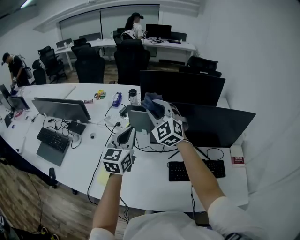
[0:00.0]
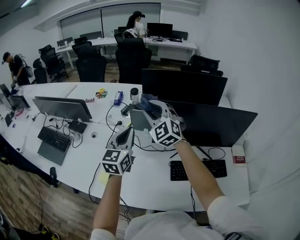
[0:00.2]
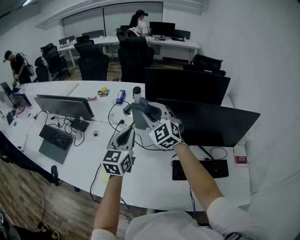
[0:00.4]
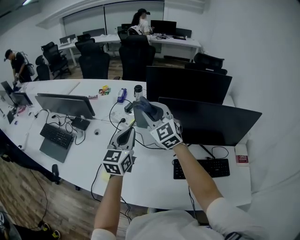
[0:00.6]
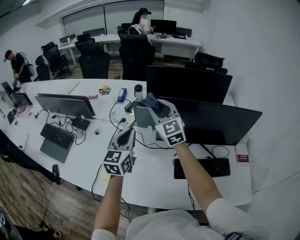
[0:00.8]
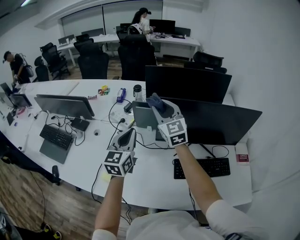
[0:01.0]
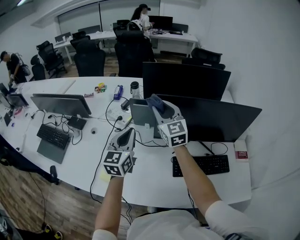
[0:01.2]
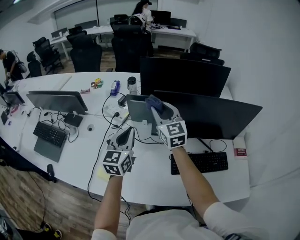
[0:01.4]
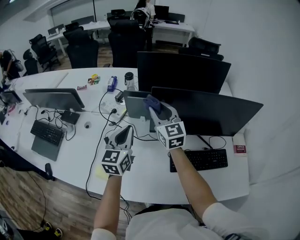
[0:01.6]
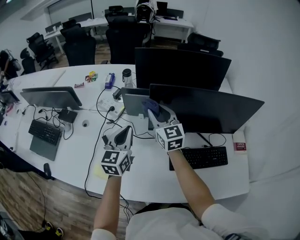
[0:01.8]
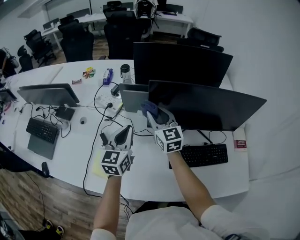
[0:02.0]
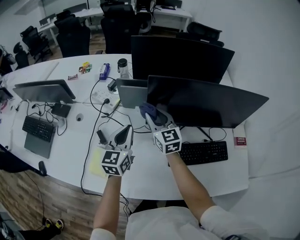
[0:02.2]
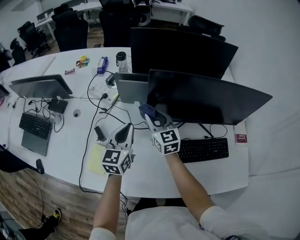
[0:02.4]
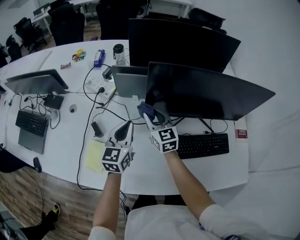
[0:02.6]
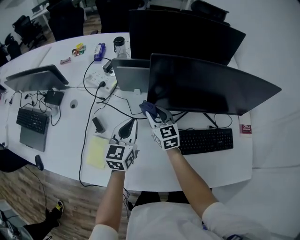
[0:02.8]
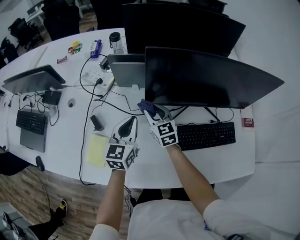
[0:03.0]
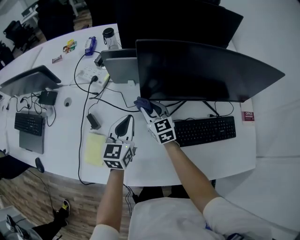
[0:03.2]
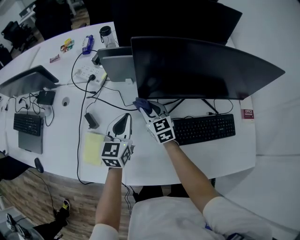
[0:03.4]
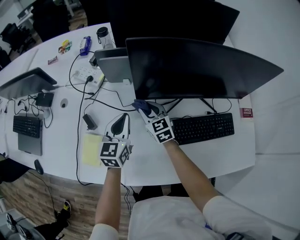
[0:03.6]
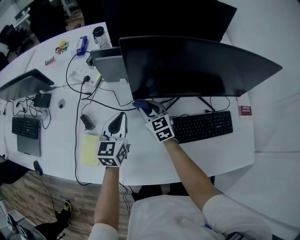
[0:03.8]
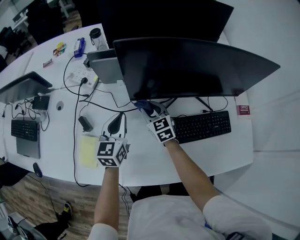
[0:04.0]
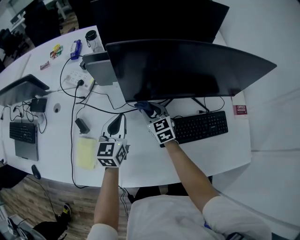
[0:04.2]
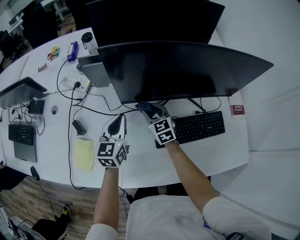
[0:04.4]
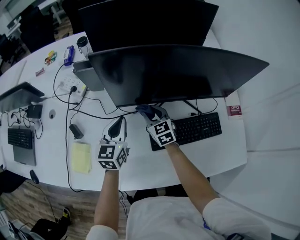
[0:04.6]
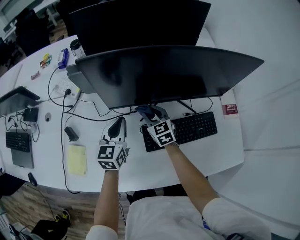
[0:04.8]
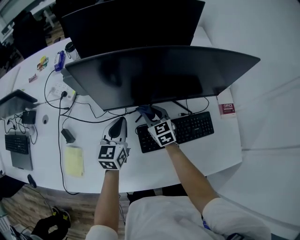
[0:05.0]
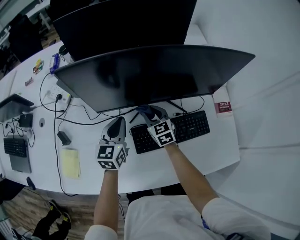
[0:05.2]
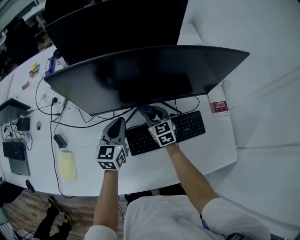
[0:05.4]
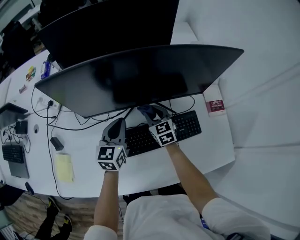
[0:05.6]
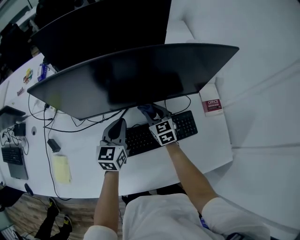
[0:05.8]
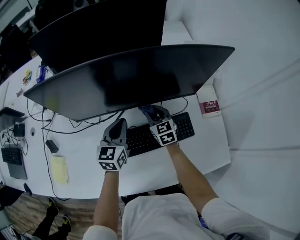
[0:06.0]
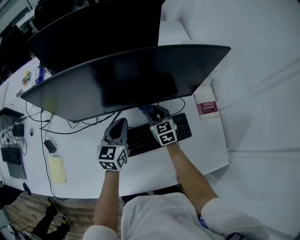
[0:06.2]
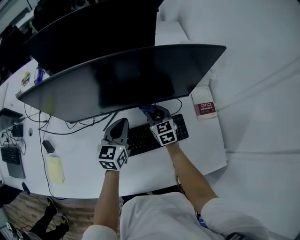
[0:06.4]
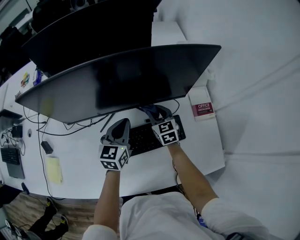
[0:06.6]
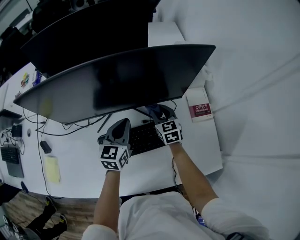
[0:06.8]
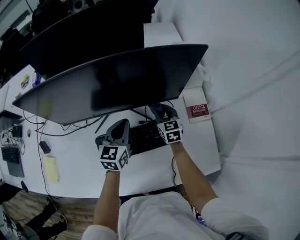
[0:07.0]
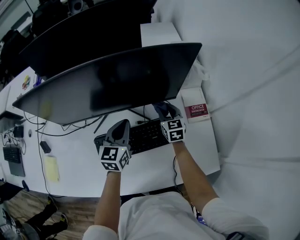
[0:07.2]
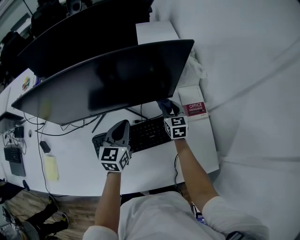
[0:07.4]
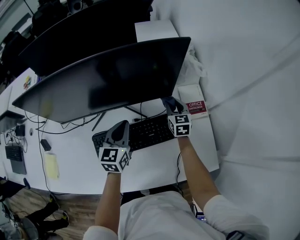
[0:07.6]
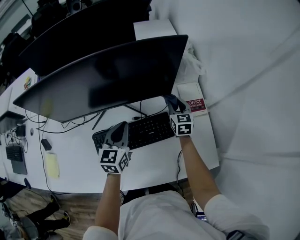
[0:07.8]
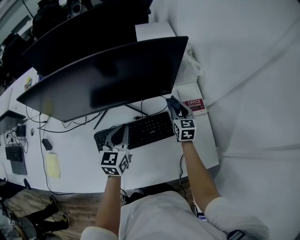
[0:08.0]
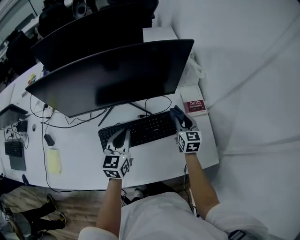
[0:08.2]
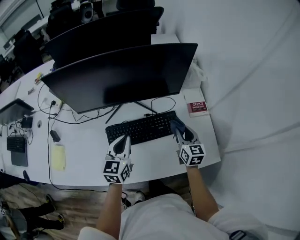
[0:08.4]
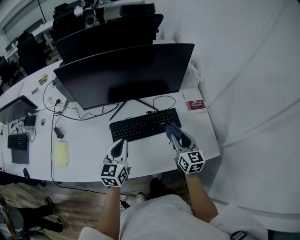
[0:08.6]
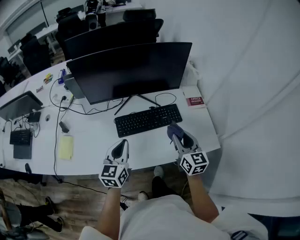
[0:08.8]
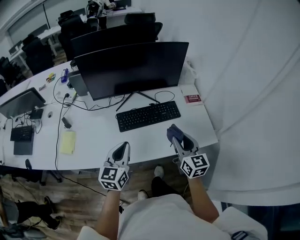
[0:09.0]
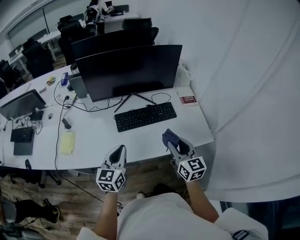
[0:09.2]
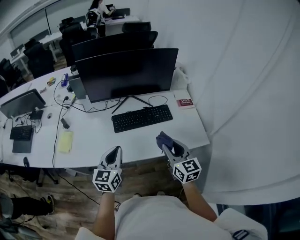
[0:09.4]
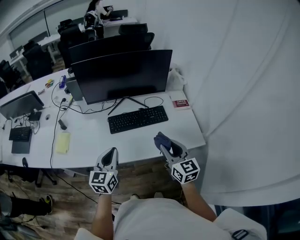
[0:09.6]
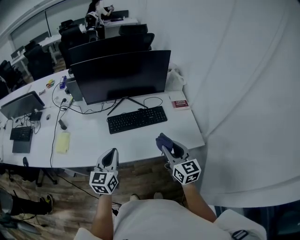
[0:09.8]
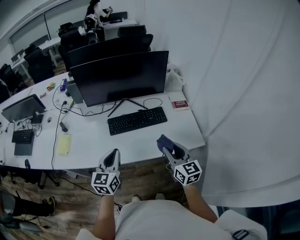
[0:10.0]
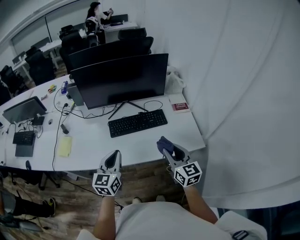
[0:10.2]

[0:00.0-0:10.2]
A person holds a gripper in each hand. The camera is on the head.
0.0 to 1.4 s: Both grippers travel together downward, approximately 5 cm. The right gripper changes its angle by roughly 40 degrees.
1.4 to 3.0 s: The left gripper shifts about 15 cm downward. Meanwhile the right gripper is displaced downward by some 25 cm, and swivels about 20 degrees.
3.0 to 4.4 s: The left gripper travels to the right by roughly 5 cm; the right gripper travels to the right by approximately 10 cm.
4.4 to 5.8 s: Both grippers travel together to the right, some 20 cm.
5.8 to 7.2 s: The grippers both shift to the right by roughly 15 cm.
7.2 to 8.8 s: The right gripper shifts about 35 cm backward and upward. Meanwhile the left gripper moves backward, approximately 25 cm.
8.8 to 10.2 s: Both grippers move backward, some 10 cm.

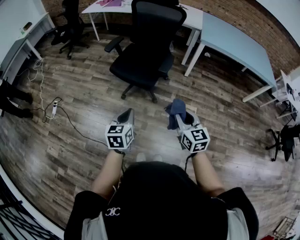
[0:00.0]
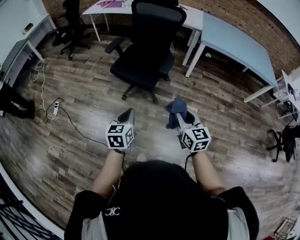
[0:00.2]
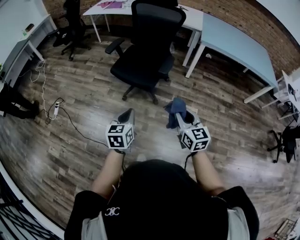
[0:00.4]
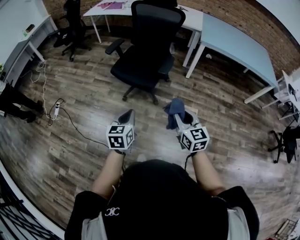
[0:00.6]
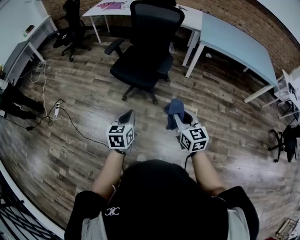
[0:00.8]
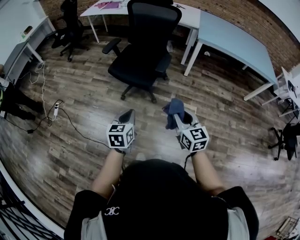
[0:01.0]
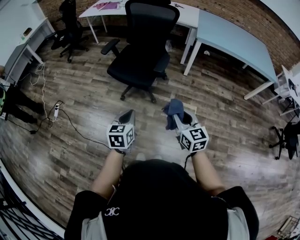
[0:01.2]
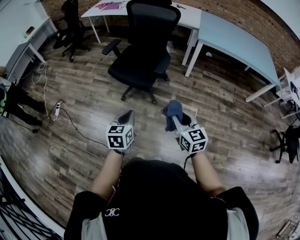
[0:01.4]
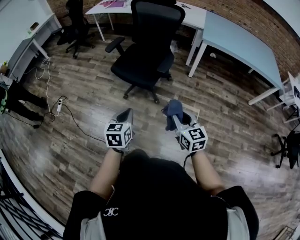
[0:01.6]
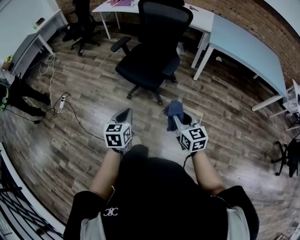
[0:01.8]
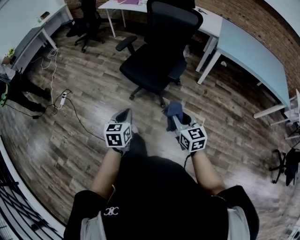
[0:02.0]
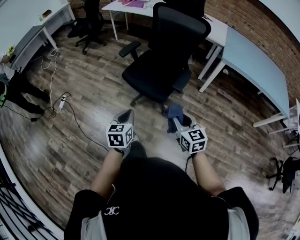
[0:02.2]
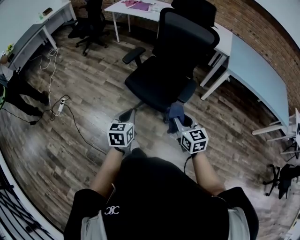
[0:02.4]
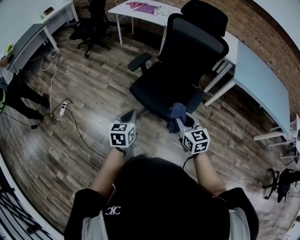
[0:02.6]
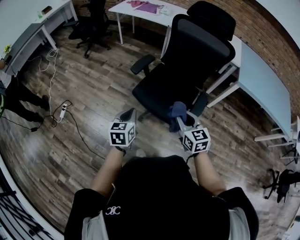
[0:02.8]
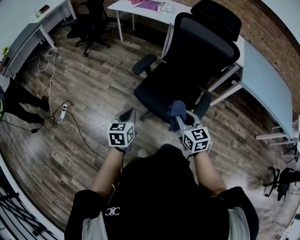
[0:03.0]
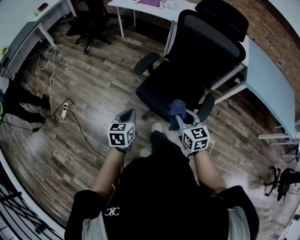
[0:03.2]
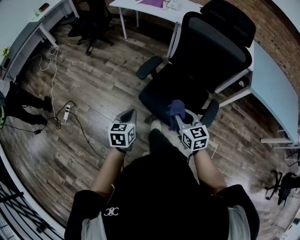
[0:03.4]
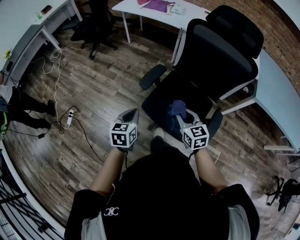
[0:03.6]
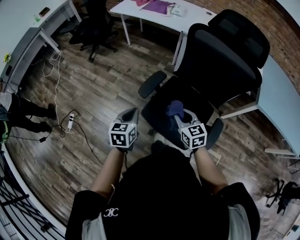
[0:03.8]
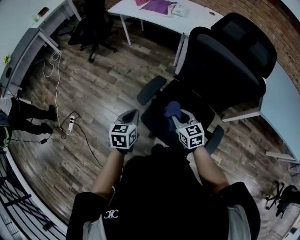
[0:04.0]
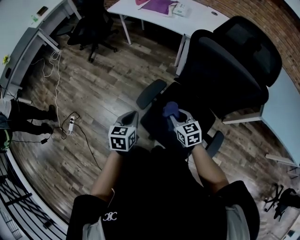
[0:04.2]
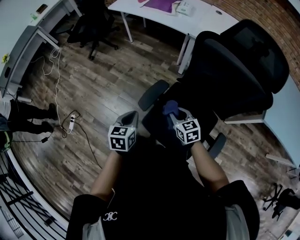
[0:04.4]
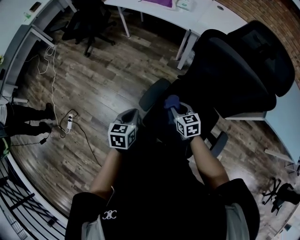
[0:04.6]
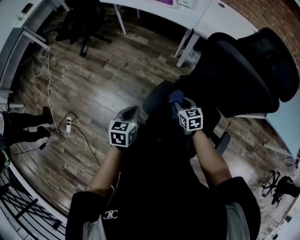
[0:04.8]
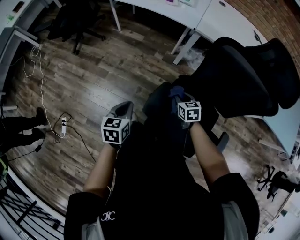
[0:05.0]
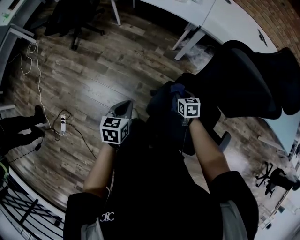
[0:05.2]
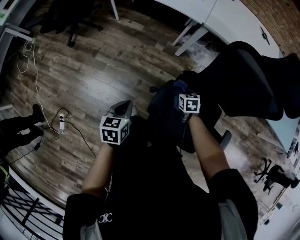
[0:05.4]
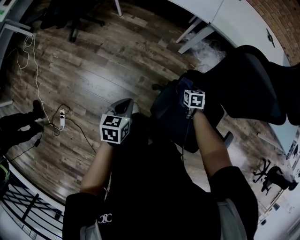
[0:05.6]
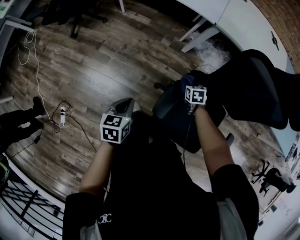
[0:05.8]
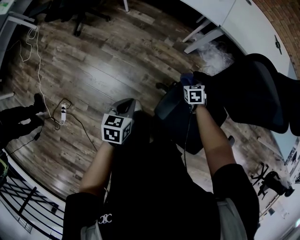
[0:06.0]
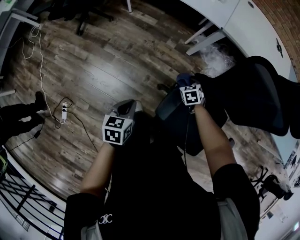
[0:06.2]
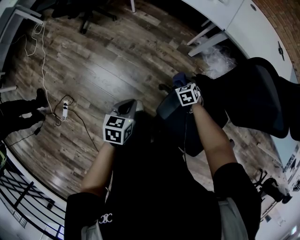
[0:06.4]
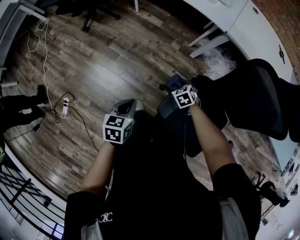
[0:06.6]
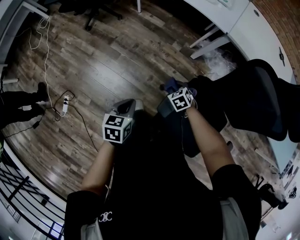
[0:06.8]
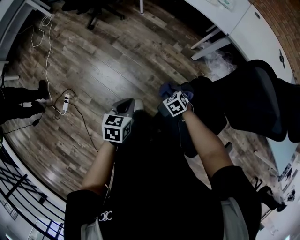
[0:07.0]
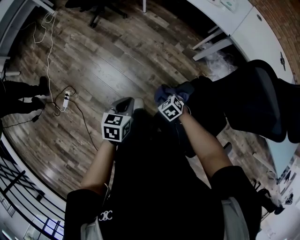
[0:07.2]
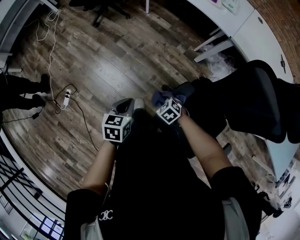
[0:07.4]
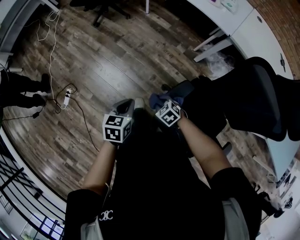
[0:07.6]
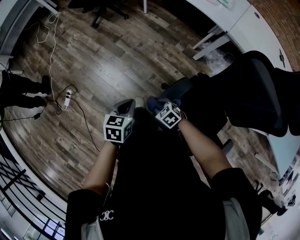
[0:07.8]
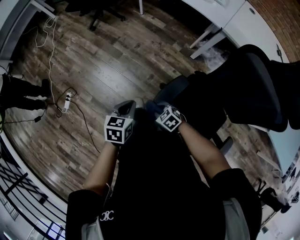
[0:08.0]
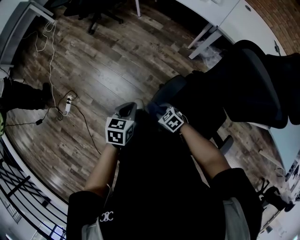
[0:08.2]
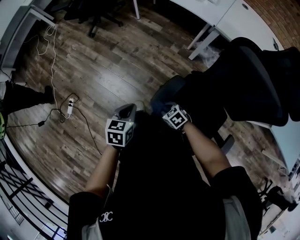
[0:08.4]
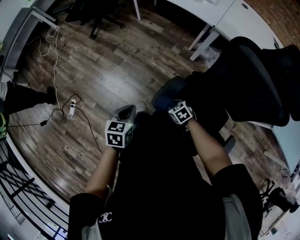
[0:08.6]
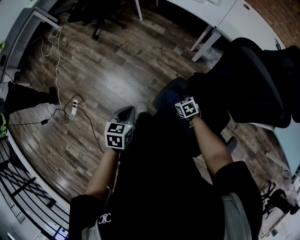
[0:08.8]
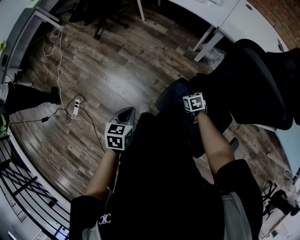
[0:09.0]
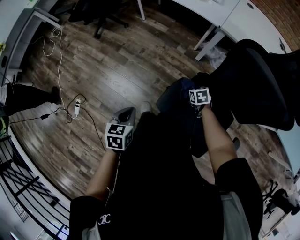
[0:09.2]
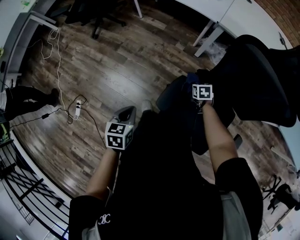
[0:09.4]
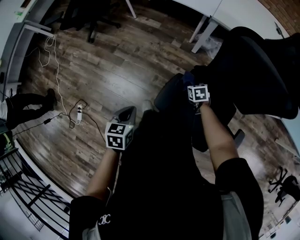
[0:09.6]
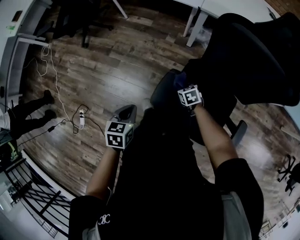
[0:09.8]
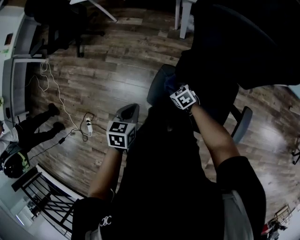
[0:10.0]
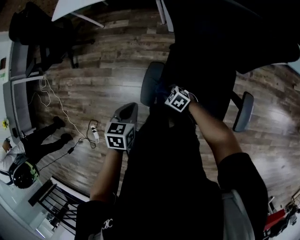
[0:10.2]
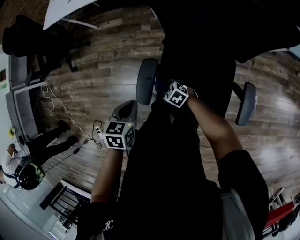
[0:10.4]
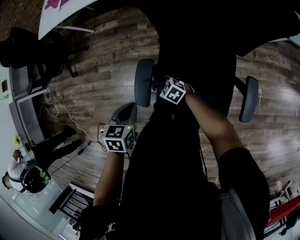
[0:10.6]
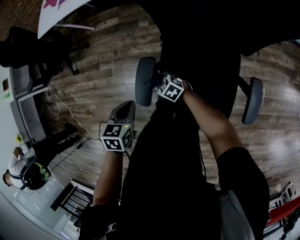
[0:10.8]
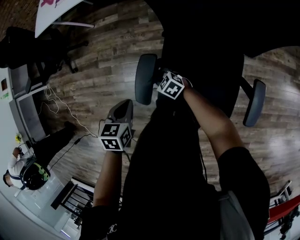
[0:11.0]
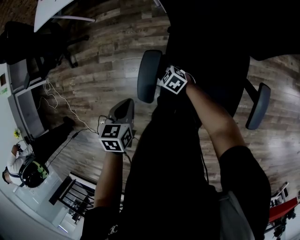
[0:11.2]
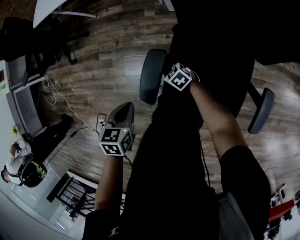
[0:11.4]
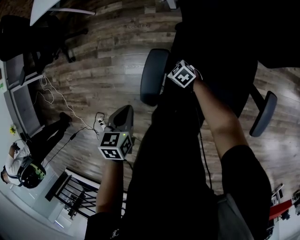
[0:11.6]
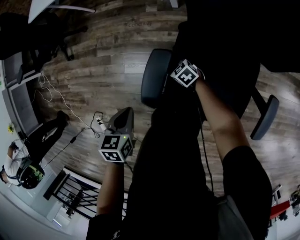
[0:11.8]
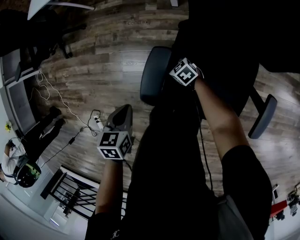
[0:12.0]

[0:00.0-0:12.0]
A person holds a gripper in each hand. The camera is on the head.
0.0 to 1.6 s: The right gripper shifts by about 5 cm. Meanwhile the left gripper moves to the right, roughly 5 cm.
1.6 to 3.0 s: The pair of grippers is taken forward and to the left, approximately 40 cm.
3.0 to 4.4 s: The two grippers go roughly 30 cm forward.
4.4 to 6.0 s: The left gripper moves roughly 20 cm; the right gripper changes place by some 30 cm, and rotates approximately 40 degrees.
6.0 to 7.6 s: The left gripper changes place by approximately 10 cm, while the right gripper changes place by about 25 cm, and turns by roughly 50 degrees.
7.6 to 9.0 s: The right gripper is displaced to the right by some 20 cm, and swivels some 40 degrees; the left gripper moves about 5 cm.
9.0 to 10.4 s: The left gripper travels to the right by roughly 15 cm, and turns by roughly 30 degrees. Meanwhile the right gripper travels backward by roughly 10 cm.
10.4 to 12.0 s: The right gripper is displaced downward and forward by some 15 cm; the left gripper is displaced downward and to the left by roughly 10 cm.

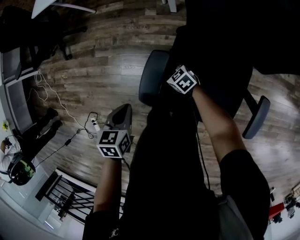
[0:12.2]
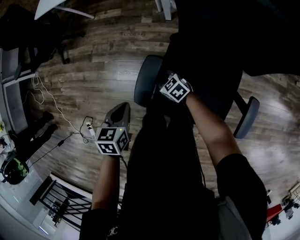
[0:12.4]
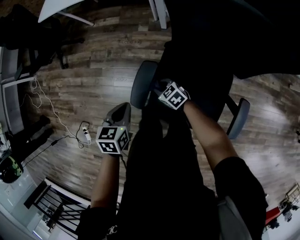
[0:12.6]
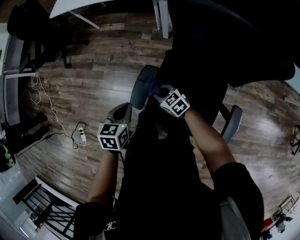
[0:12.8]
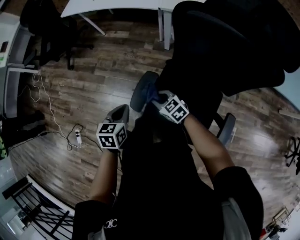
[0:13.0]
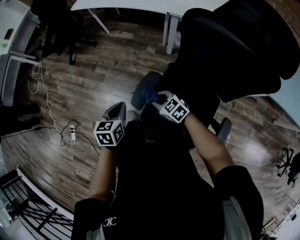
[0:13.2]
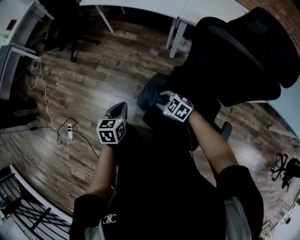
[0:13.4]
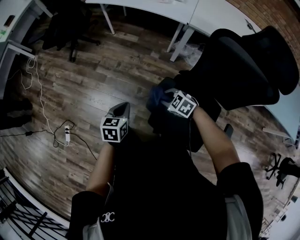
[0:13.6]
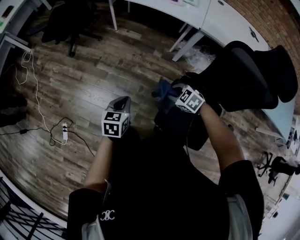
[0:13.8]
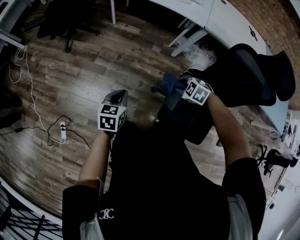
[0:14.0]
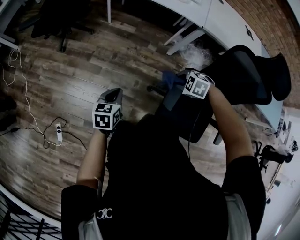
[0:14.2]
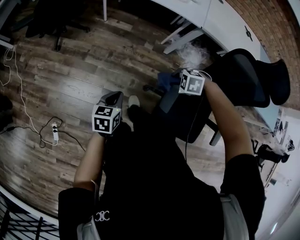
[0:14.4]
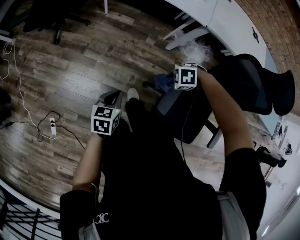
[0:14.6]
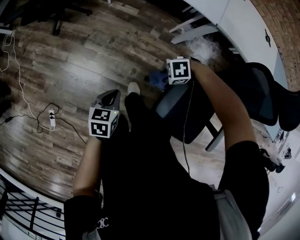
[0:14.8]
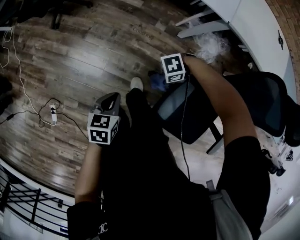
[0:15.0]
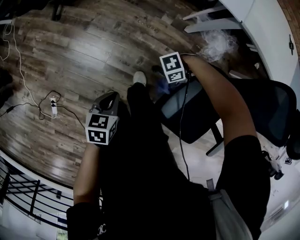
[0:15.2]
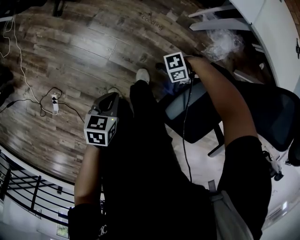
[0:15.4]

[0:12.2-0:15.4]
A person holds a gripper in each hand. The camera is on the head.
12.2 to 13.8 s: The left gripper is displaced to the left, upward and forward by roughly 15 cm, and rotates approximately 20 degrees; the right gripper shifts some 25 cm upward and to the left, and turns by some 40 degrees.
13.8 to 15.4 s: The grippers both shift downward by about 15 cm. The left gripper swivels roughly 20 degrees, while the right gripper tips its fingers upward by some 30 degrees.
